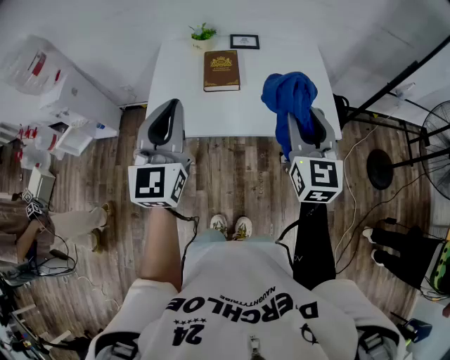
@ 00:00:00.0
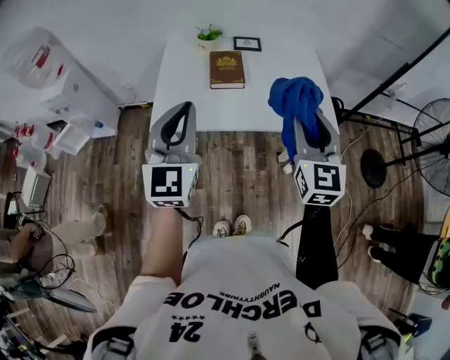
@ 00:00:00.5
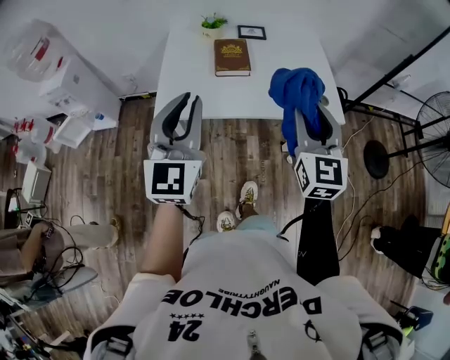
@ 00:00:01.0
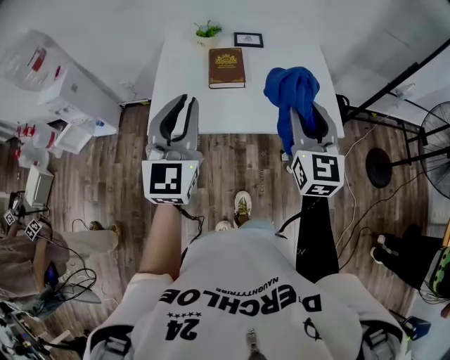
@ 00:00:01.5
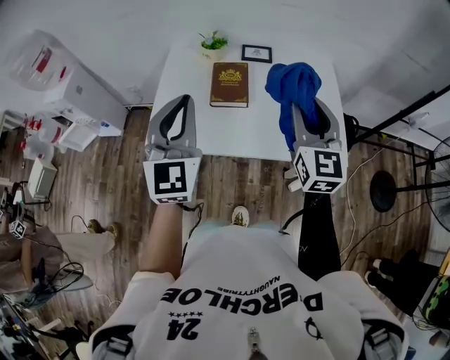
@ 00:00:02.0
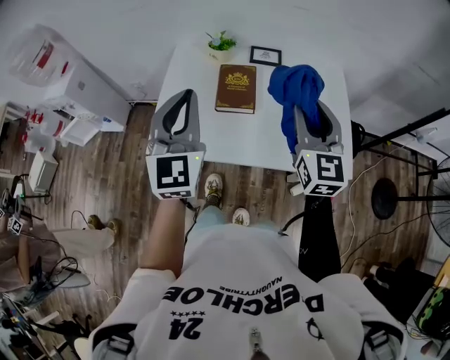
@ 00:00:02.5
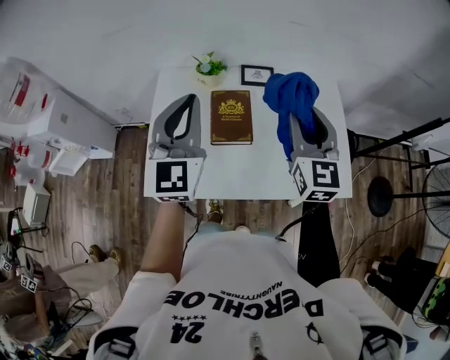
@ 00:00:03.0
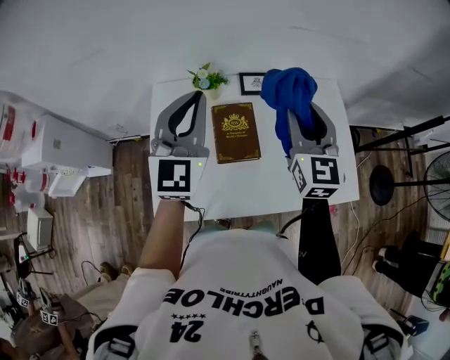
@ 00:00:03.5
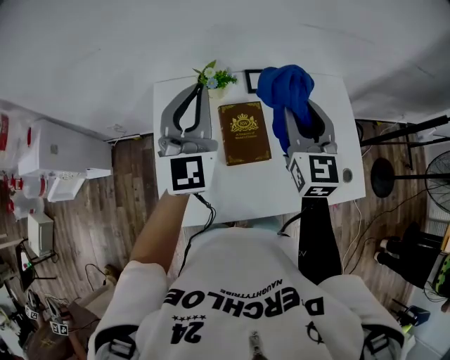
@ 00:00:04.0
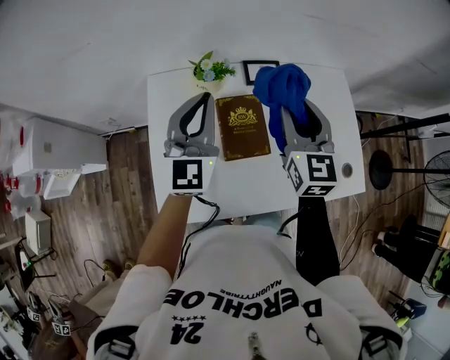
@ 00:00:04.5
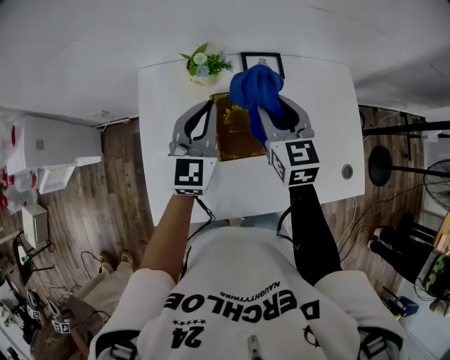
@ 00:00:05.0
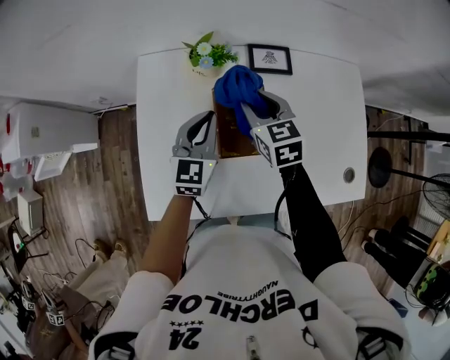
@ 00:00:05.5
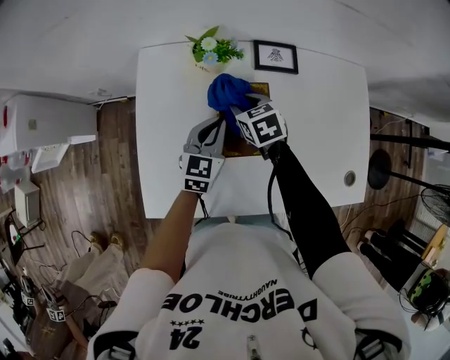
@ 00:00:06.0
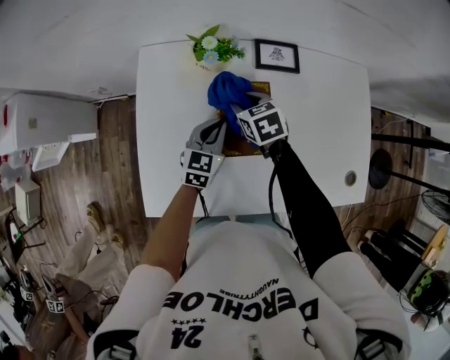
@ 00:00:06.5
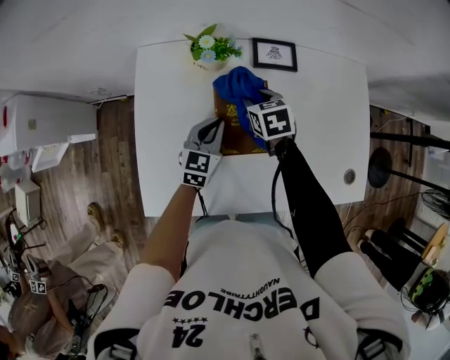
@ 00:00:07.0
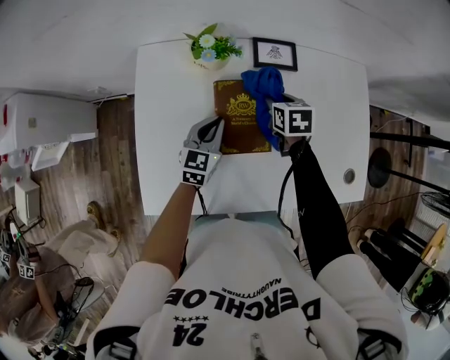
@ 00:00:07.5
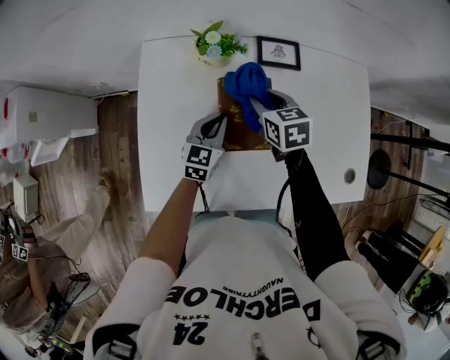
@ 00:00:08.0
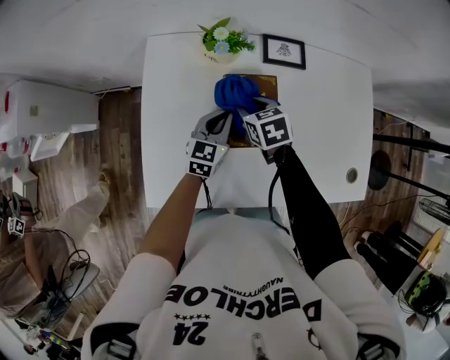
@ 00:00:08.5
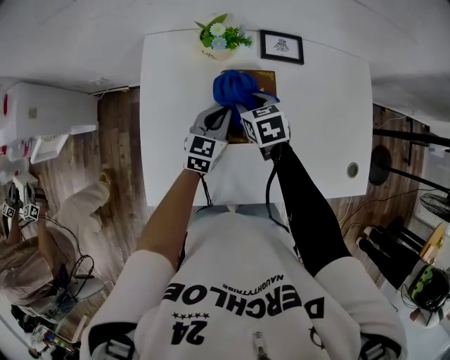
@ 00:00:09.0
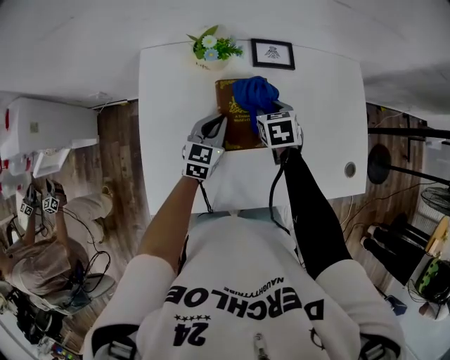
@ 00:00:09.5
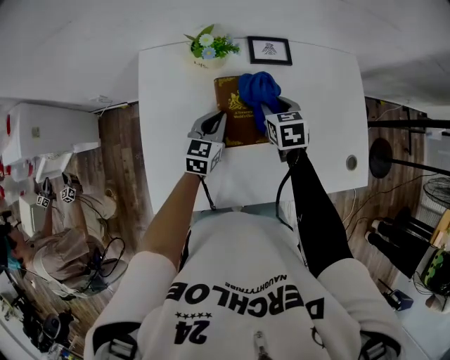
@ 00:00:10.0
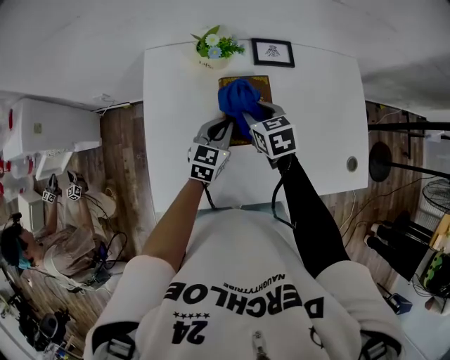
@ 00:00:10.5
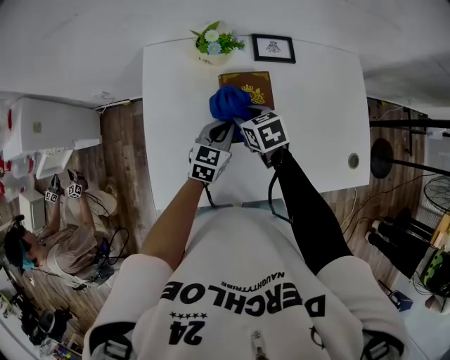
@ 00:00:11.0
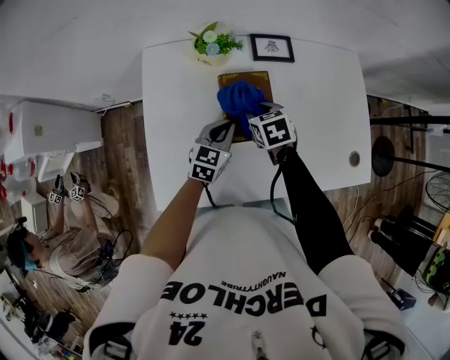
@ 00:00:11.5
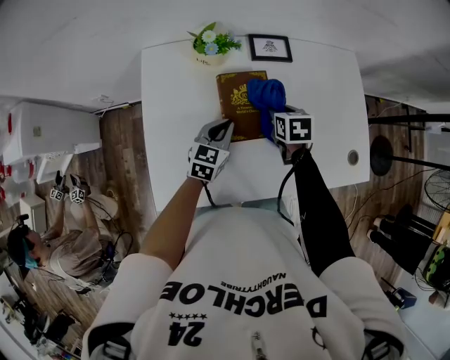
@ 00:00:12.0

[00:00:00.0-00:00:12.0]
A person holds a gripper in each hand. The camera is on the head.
00:00:00.0 to 00:00:02.0: Both grippers move forward, approximately 10 cm.
00:00:02.0 to 00:00:04.0: The left gripper travels forward by about 30 cm. Meanwhile the right gripper moves forward and to the left, approximately 25 cm.
00:00:04.0 to 00:00:06.0: Both grippers move downward, some 30 cm. The left gripper tips its fingers downward by some 30 degrees. Meanwhile the right gripper tips its fingers downward by some 50 degrees.
00:00:06.0 to 00:00:08.0: The right gripper shifts approximately 5 cm upward.
00:00:08.0 to 00:00:10.0: The right gripper goes about 5 cm to the right.
00:00:10.0 to 00:00:12.0: The right gripper reaches roughly 10 cm to the left, then returns.

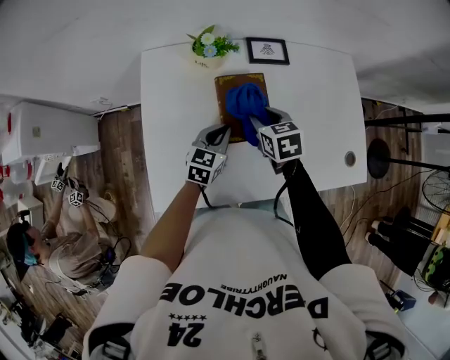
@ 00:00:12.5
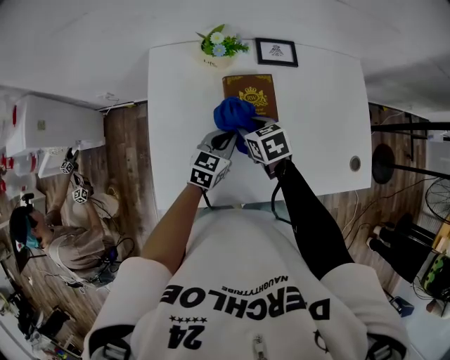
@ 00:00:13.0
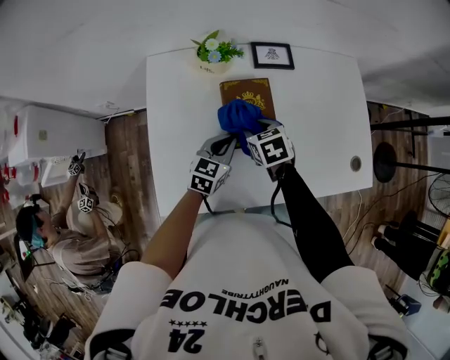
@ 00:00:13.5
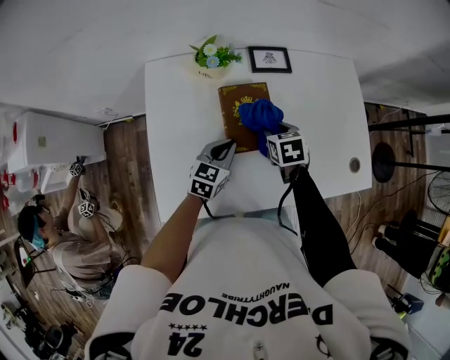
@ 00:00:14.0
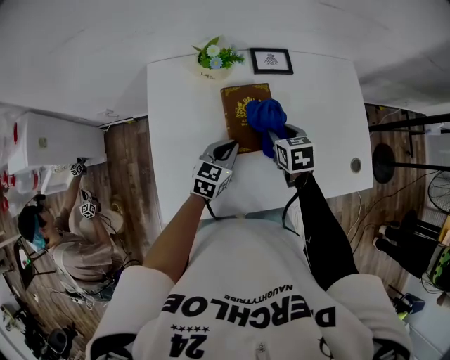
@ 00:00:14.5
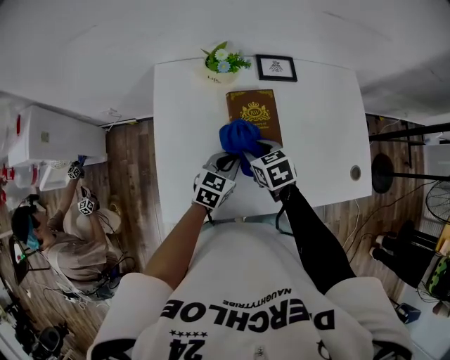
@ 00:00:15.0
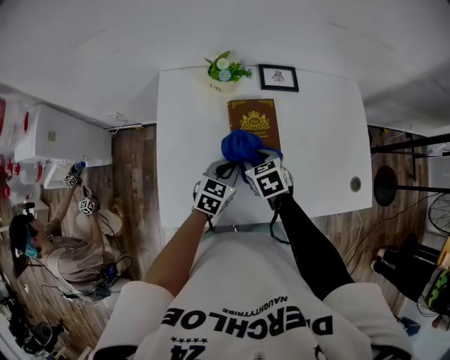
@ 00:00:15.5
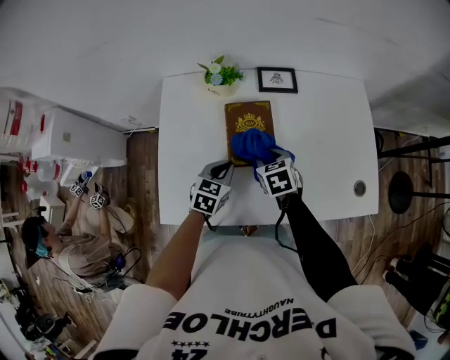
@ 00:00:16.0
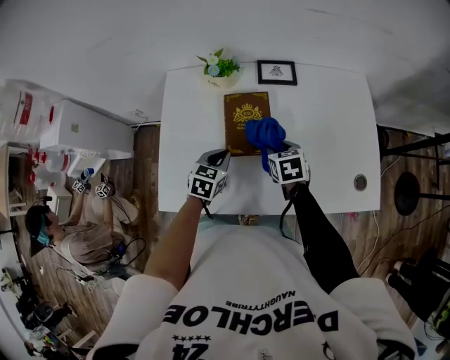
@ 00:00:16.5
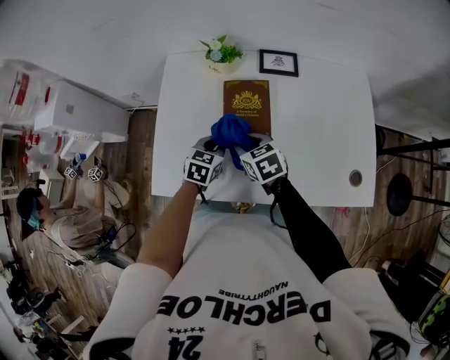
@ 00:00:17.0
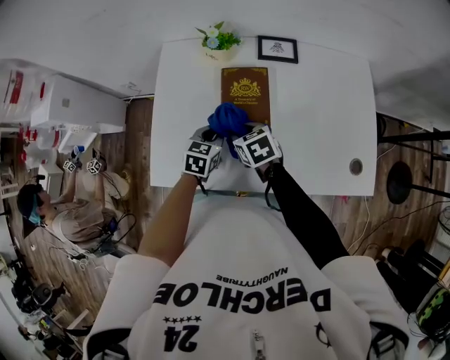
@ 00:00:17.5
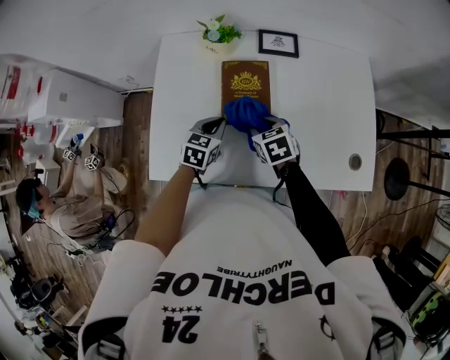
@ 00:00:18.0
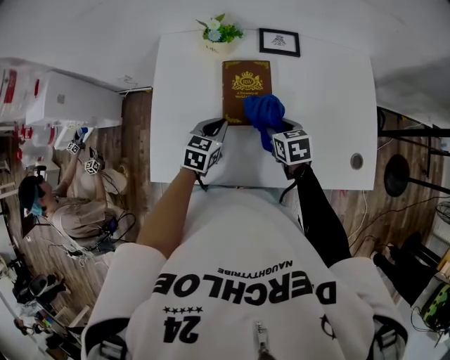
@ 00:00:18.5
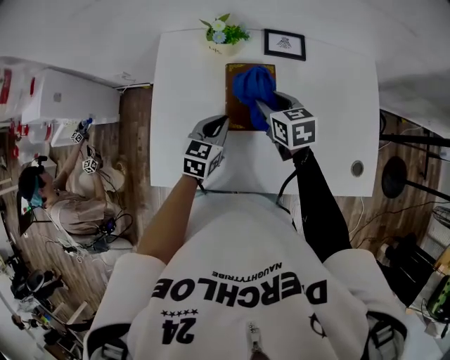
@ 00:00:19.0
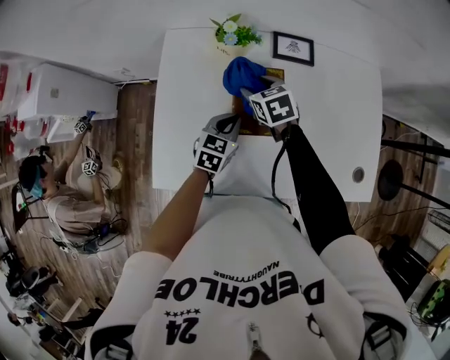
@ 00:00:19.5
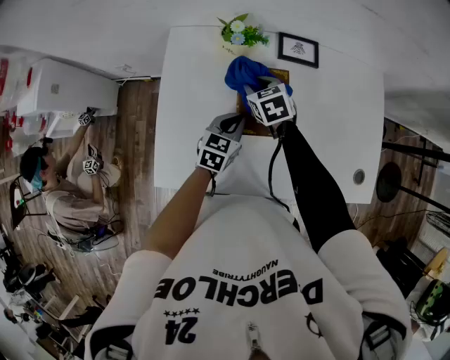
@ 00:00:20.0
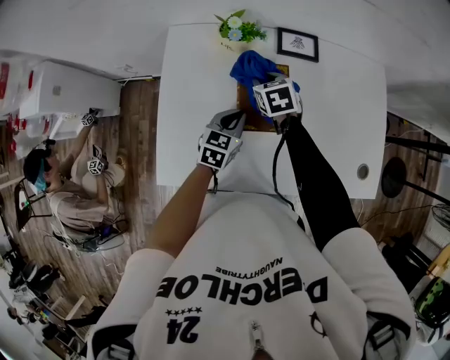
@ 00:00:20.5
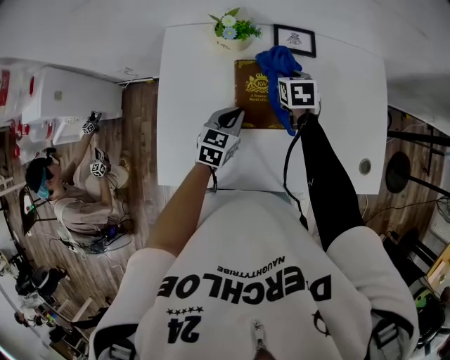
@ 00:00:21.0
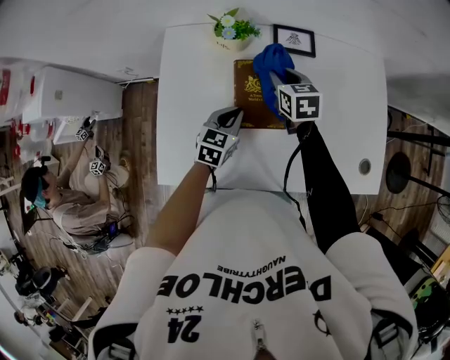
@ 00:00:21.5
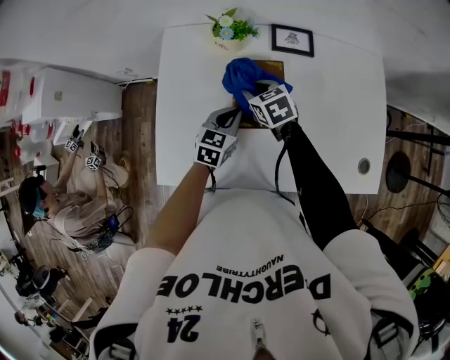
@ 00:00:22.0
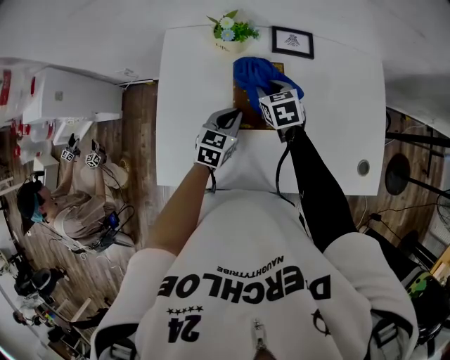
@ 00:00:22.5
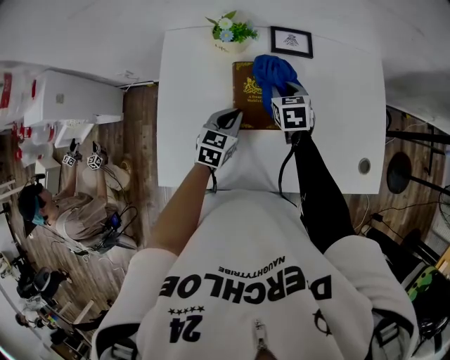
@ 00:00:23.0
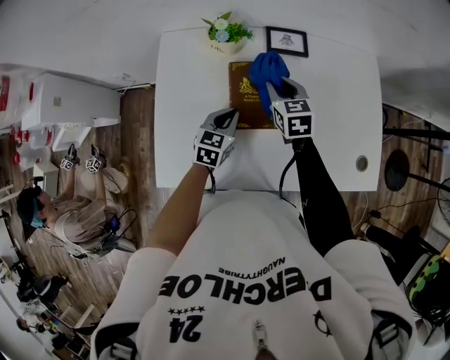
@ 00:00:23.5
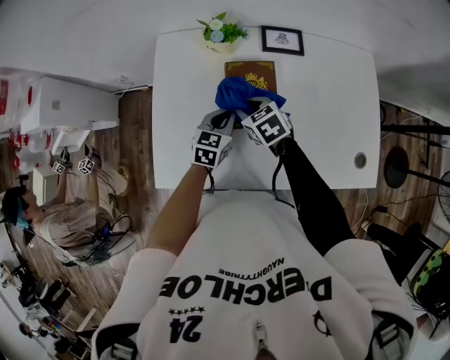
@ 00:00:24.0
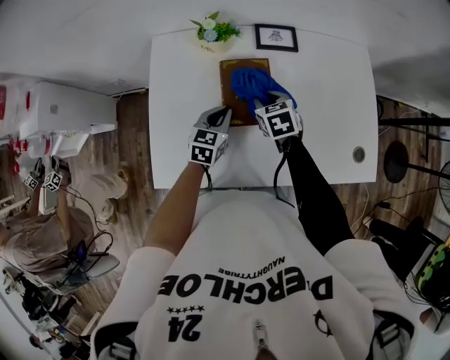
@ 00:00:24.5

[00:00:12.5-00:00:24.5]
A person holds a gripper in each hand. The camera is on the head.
00:00:14.5 to 00:00:16.5: The right gripper moves about 10 cm to the left and comes back.
00:00:16.5 to 00:00:18.5: The right gripper goes to the left and returns, some 10 cm each way.
00:00:18.5 to 00:00:20.5: The right gripper heads forward and to the left, covering approximately 20 cm.
00:00:20.5 to 00:00:22.5: The right gripper swings left and right, roughly 10 cm each way, with 2 reversals.
00:00:22.5 to 00:00:24.5: The right gripper swings left and right, approximately 10 cm each way, with 2 reversals.

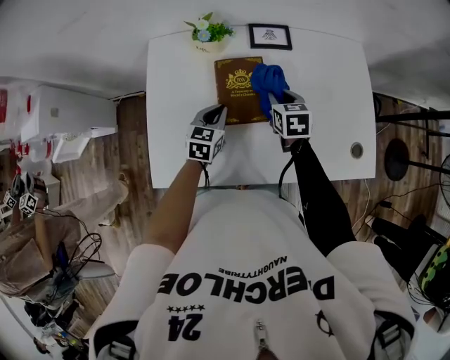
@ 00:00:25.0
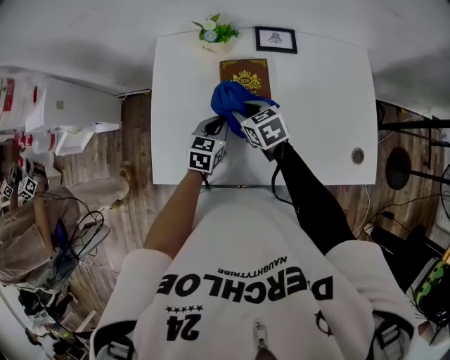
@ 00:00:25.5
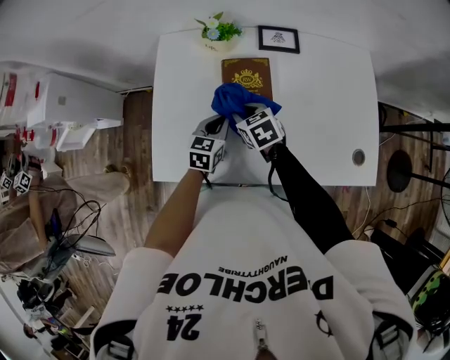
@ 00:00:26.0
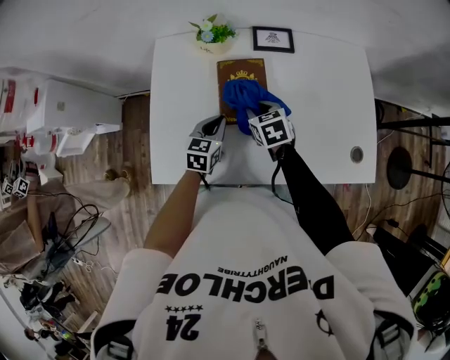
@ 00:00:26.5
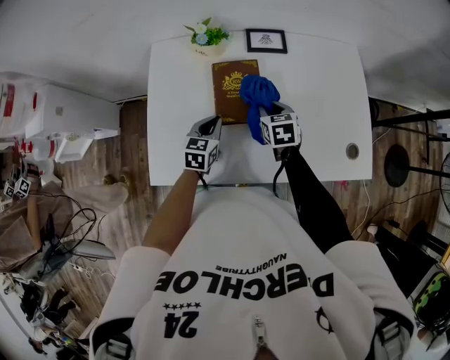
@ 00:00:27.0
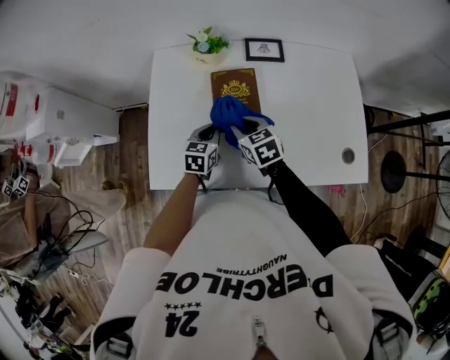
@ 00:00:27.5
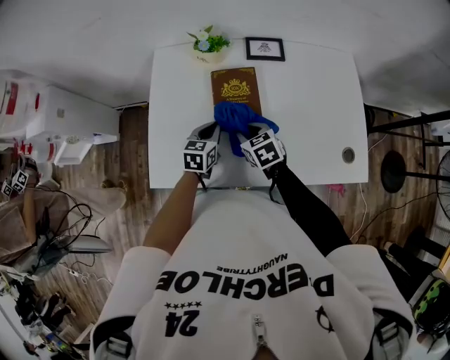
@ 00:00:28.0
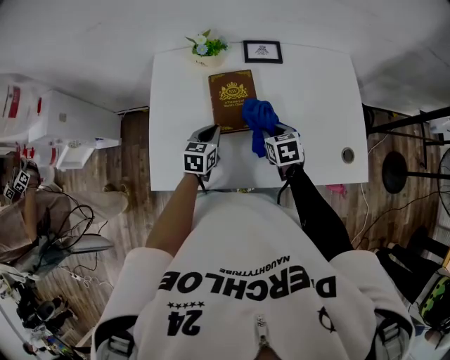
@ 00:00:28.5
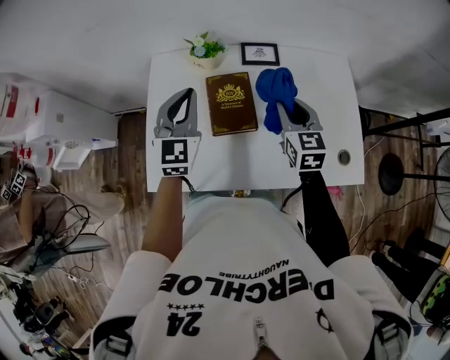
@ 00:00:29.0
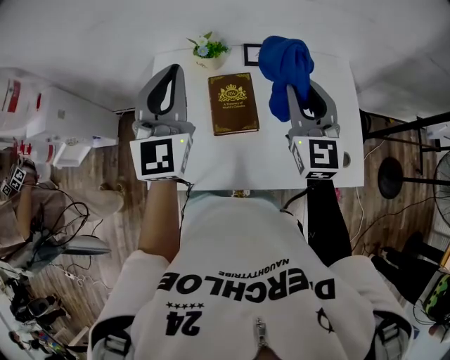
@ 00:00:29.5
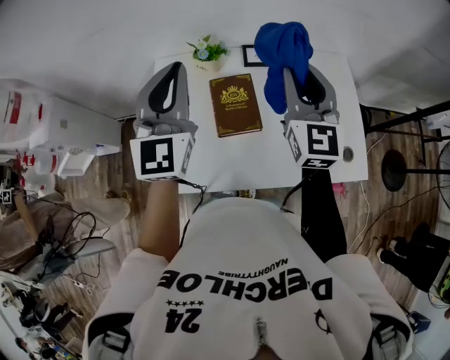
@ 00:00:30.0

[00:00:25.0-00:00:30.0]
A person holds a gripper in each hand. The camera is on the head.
00:00:25.0 to 00:00:27.5: The right gripper moves left and right over about 15 cm, changing direction 2 times, and swivels approximately 20 degrees.
00:00:27.5 to 00:00:30.0: The right gripper travels upward and to the right by roughly 35 cm, and tips its fingers upward by roughly 40 degrees. Meanwhile the left gripper shifts some 40 cm upward, and points its fingers about 40 degrees further upward.
